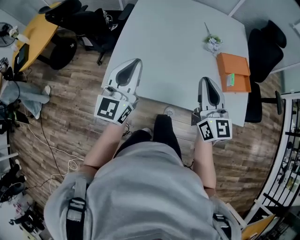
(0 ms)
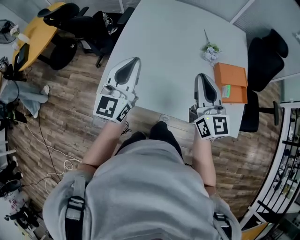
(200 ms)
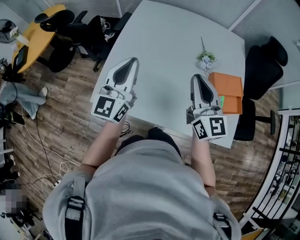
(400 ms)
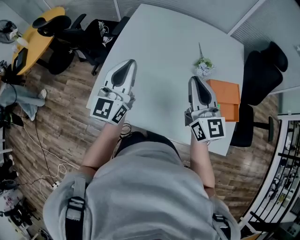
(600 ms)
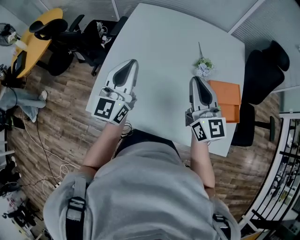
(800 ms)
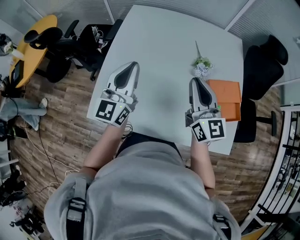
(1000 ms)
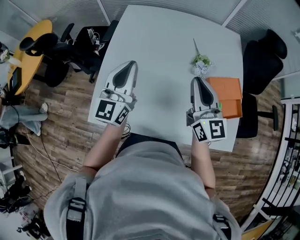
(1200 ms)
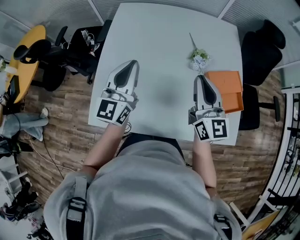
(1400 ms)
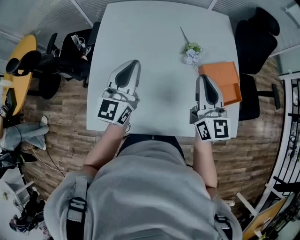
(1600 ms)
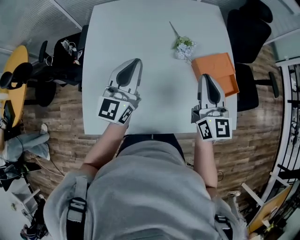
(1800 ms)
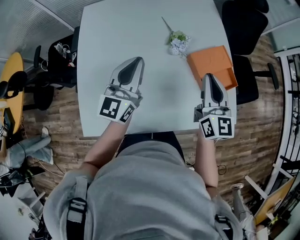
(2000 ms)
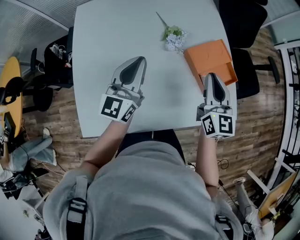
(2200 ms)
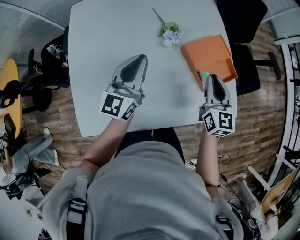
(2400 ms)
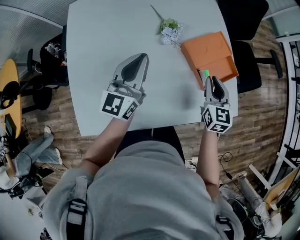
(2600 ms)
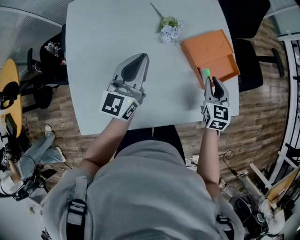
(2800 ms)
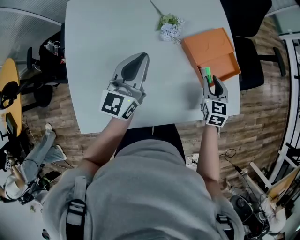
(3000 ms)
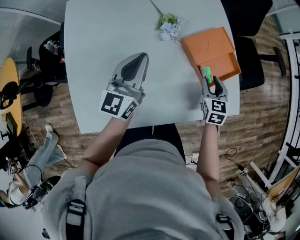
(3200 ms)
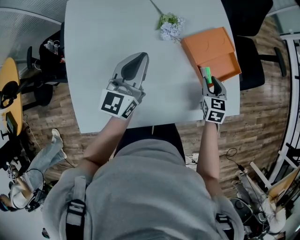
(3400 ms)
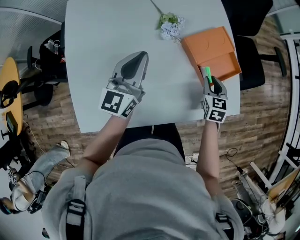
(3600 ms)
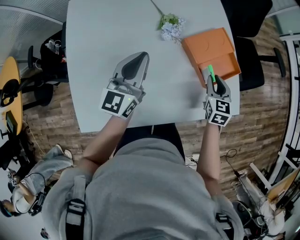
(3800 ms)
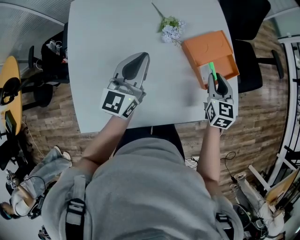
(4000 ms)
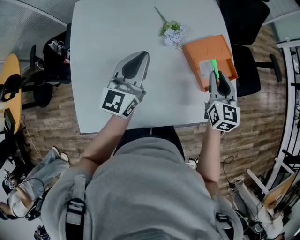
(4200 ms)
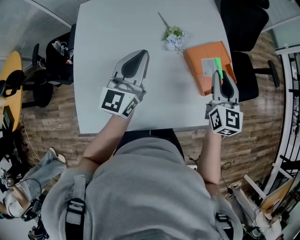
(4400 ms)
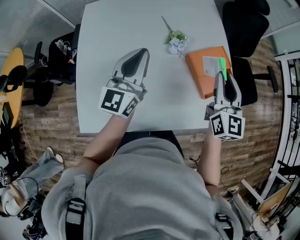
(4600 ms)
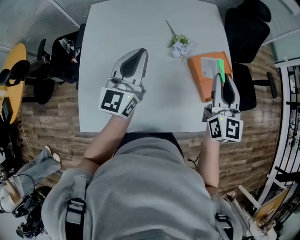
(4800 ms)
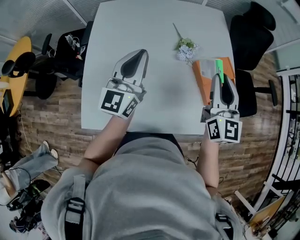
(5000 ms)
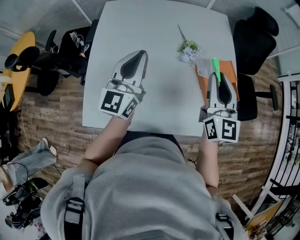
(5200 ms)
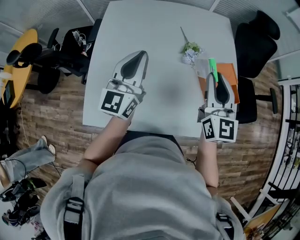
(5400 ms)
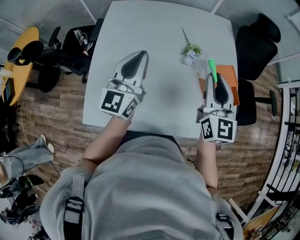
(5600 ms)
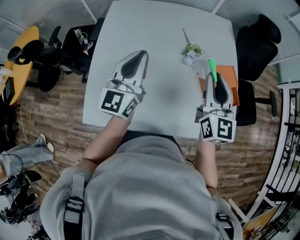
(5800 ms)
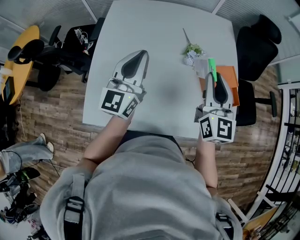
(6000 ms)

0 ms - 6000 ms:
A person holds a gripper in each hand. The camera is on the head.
0 ms - 1600 ms: Both grippers travel together forward and to the right, roughly 25 cm.
1600 ms - 3000 ms: The right gripper is displaced downward and to the right by some 30 cm, and points its fingers approximately 40 degrees further downward; the left gripper shifts some 20 cm to the right, downward and forward.
3000 ms - 4400 ms: The right gripper is displaced upward by approximately 20 cm, and changes its angle by some 20 degrees; the left gripper is displaced upward by approximately 5 cm.
4400 ms - 6000 ms: Both grippers travel together to the left and upward, some 15 cm.

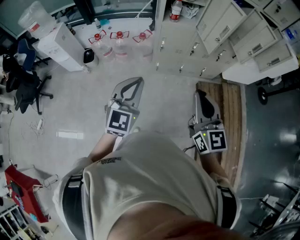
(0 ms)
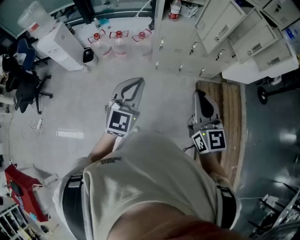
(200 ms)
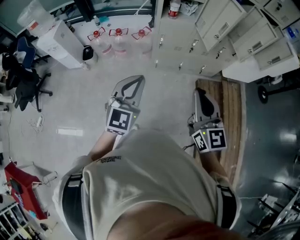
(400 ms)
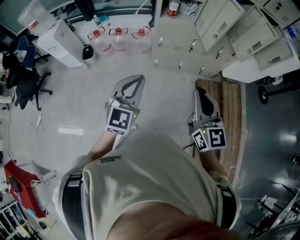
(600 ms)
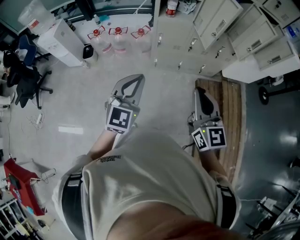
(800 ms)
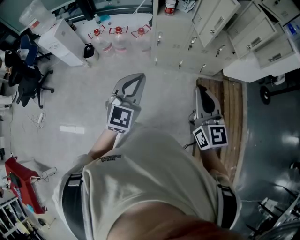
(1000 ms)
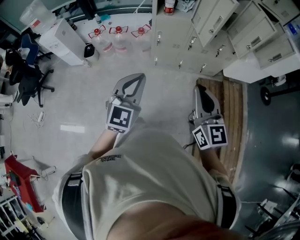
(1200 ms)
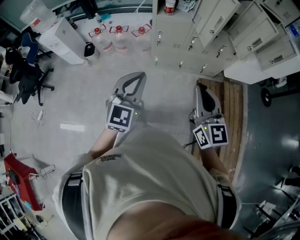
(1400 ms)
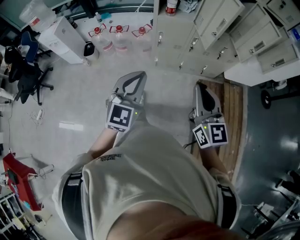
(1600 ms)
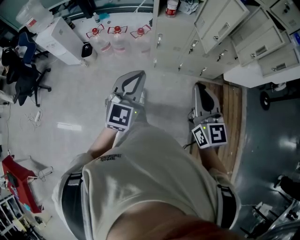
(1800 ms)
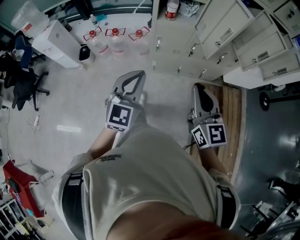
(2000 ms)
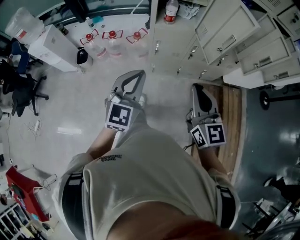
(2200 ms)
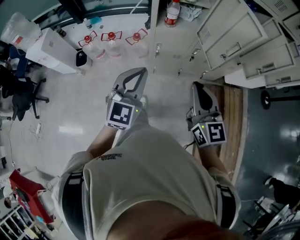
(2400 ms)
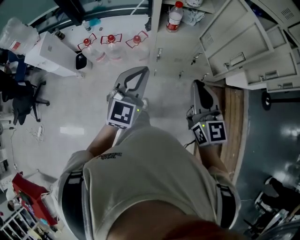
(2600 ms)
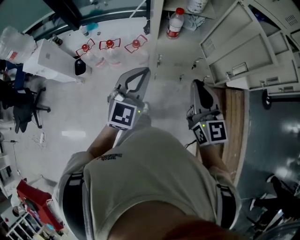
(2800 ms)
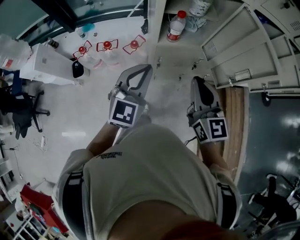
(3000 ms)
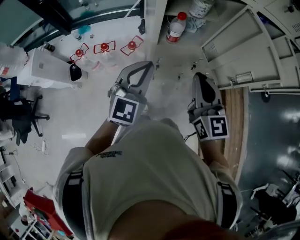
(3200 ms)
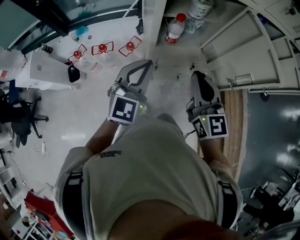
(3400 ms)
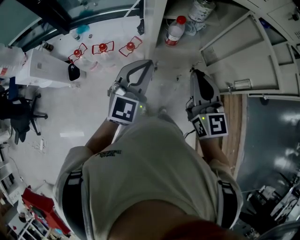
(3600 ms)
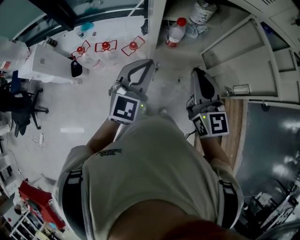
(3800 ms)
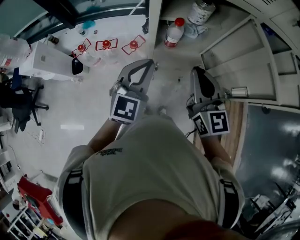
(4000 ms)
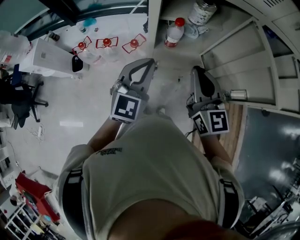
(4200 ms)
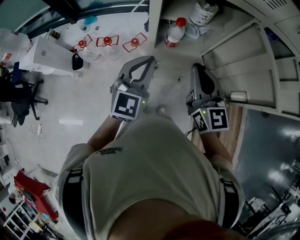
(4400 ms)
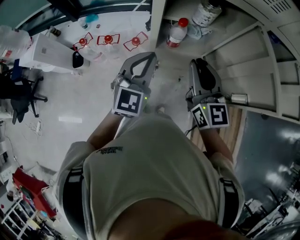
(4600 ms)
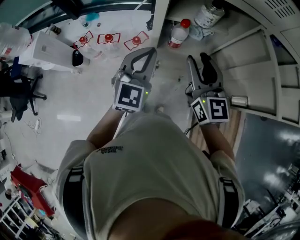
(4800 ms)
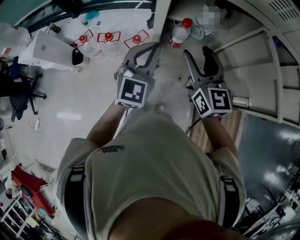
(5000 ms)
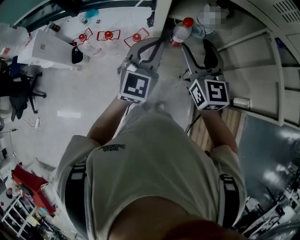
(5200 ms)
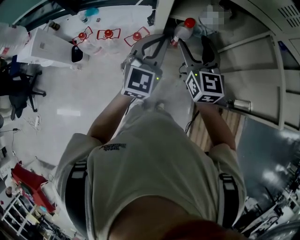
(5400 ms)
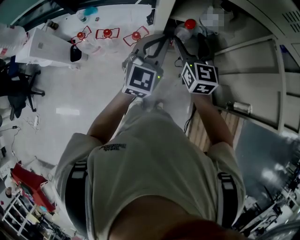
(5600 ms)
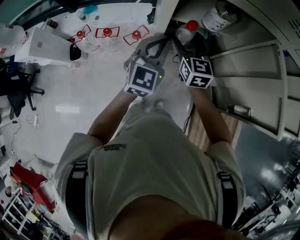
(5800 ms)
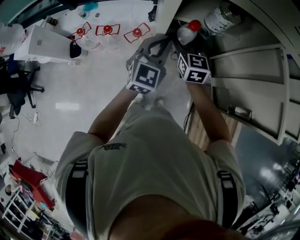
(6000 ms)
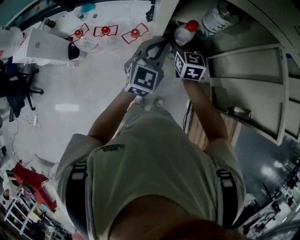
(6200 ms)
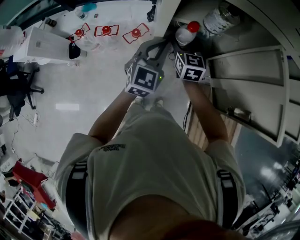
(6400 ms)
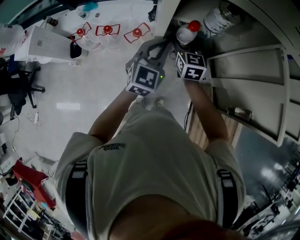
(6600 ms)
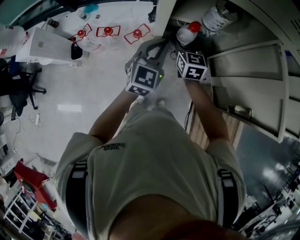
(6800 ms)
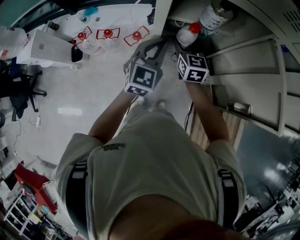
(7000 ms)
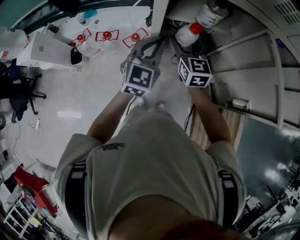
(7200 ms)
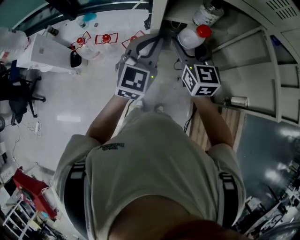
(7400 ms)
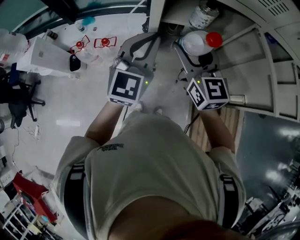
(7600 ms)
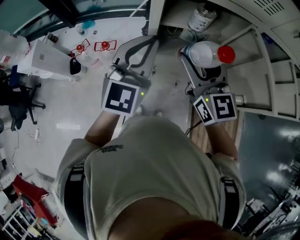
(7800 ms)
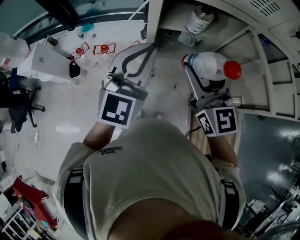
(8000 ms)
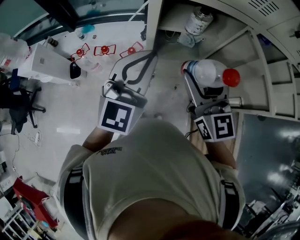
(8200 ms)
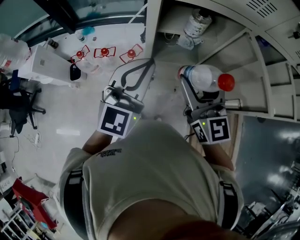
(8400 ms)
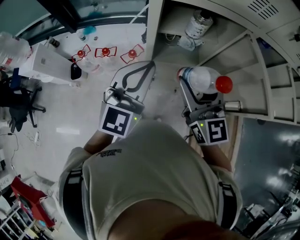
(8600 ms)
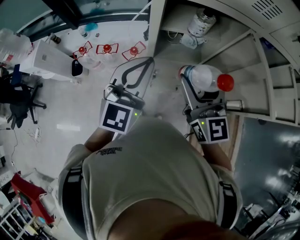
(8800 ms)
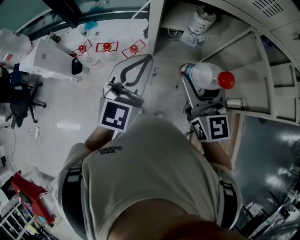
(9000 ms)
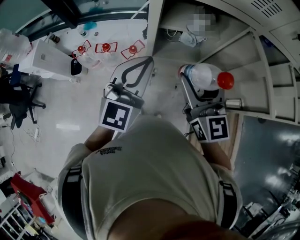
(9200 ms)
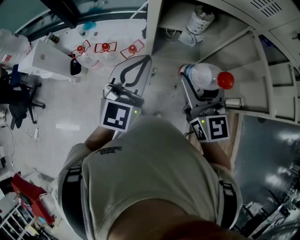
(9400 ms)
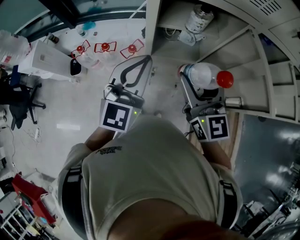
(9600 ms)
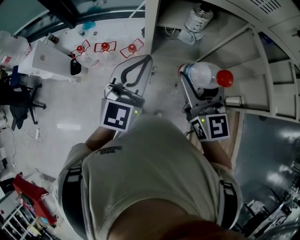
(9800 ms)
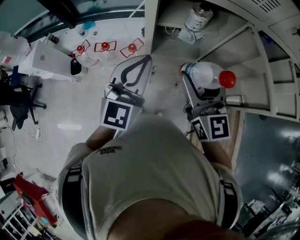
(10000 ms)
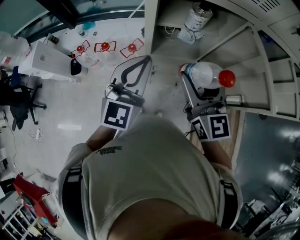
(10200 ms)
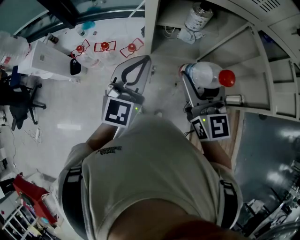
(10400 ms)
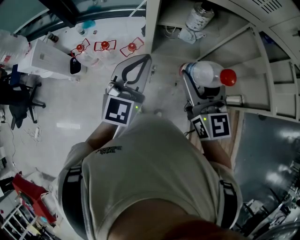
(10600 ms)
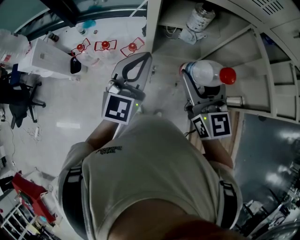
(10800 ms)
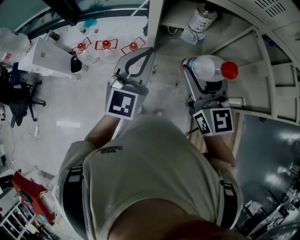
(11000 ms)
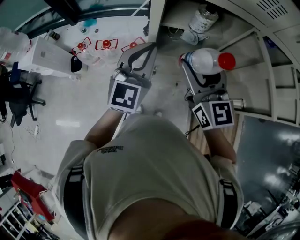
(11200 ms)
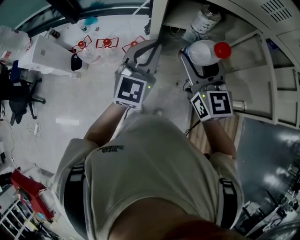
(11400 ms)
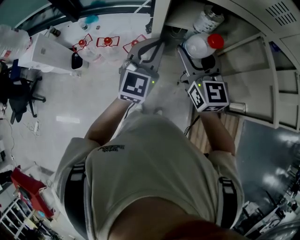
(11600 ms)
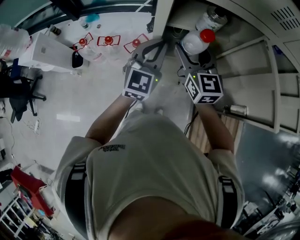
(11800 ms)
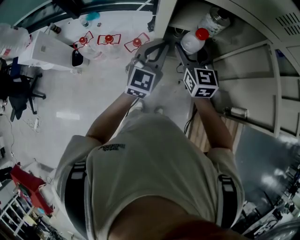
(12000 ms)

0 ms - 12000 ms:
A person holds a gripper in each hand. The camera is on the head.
0 ms - 1600 ms: Both grippers travel together to the right, some 10 cm.
1600 ms - 3000 ms: The grippers both shift forward by roughly 30 cm.
3000 ms - 4400 ms: Both grippers travel together forward, about 10 cm.
4400 ms - 6000 ms: The left gripper moves forward and downward, roughly 15 cm; the right gripper moves forward and downward, approximately 20 cm, and opens up.
6000 ms - 7600 ms: The grippers both shift upward and backward by some 15 cm.
7600 ms - 9000 ms: Both grippers move backward, approximately 5 cm.
9000 ms - 10400 ms: The grippers stay close to where they were, moving slightly.
10400 ms - 12000 ms: Both grippers move forward and downward, roughly 15 cm.

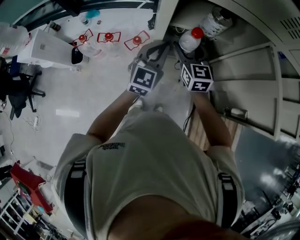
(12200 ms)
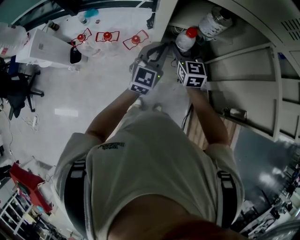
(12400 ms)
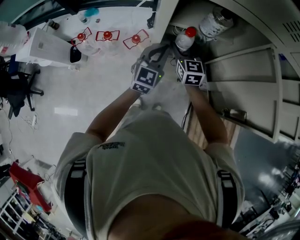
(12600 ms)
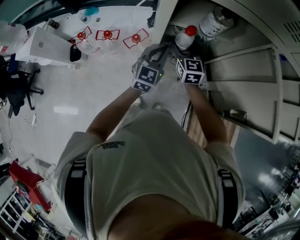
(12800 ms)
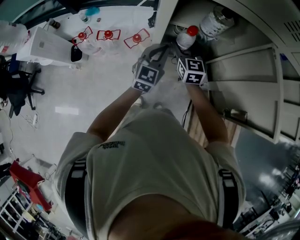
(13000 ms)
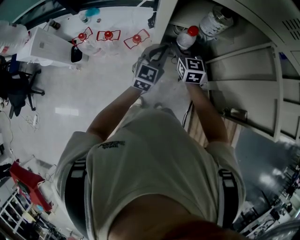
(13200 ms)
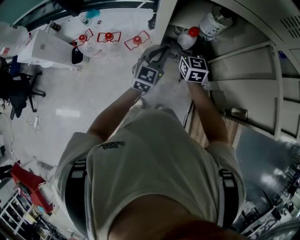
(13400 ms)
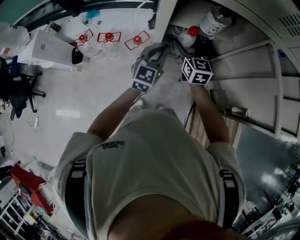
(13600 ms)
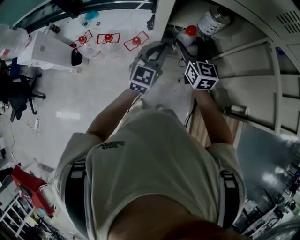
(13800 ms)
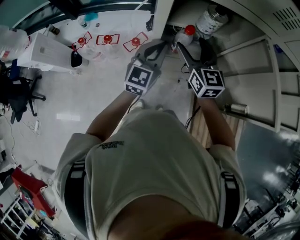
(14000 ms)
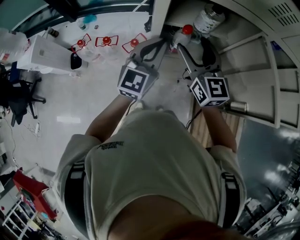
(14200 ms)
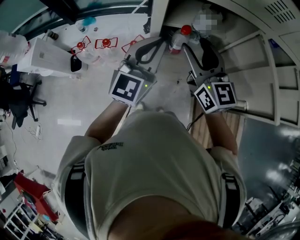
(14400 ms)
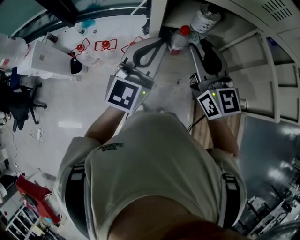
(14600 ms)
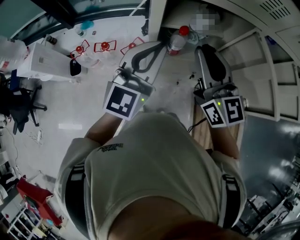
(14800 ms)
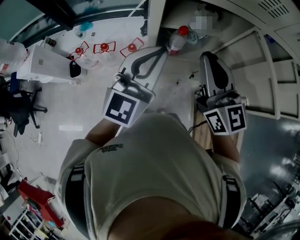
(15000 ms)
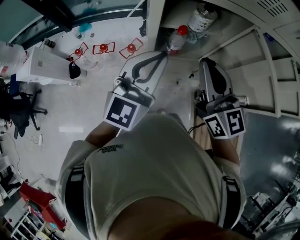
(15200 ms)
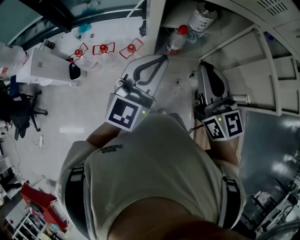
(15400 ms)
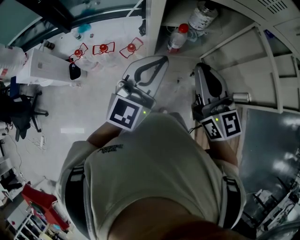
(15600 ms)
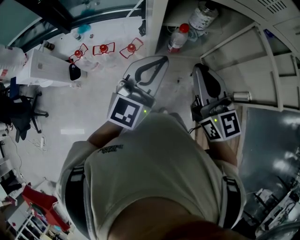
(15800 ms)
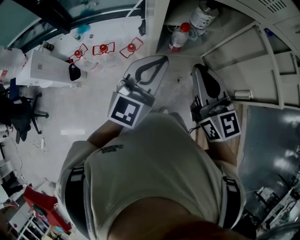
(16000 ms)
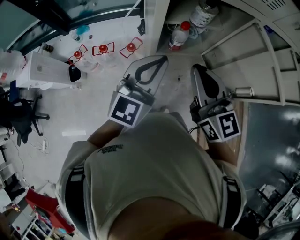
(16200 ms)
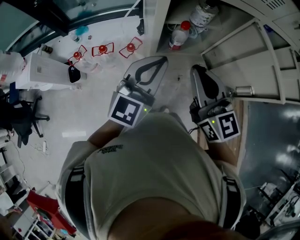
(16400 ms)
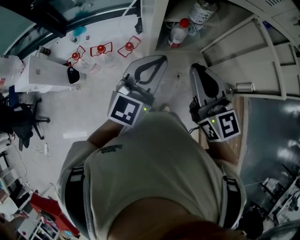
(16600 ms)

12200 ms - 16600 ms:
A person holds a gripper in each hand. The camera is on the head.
13600 ms - 15200 ms: The grippers both shift upward and backward by some 25 cm. The left gripper rotates some 20 degrees; the right gripper closes its fingers.
15200 ms - 16600 ms: The right gripper shifts by approximately 5 cm.

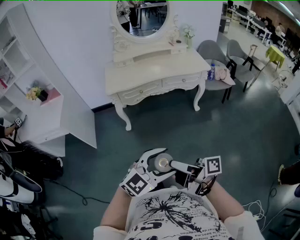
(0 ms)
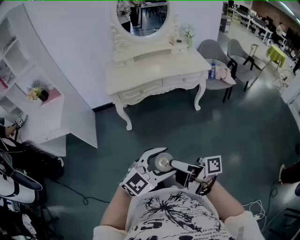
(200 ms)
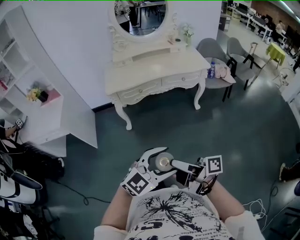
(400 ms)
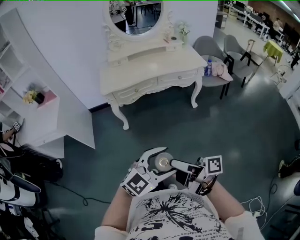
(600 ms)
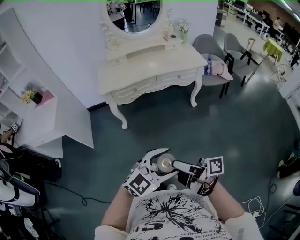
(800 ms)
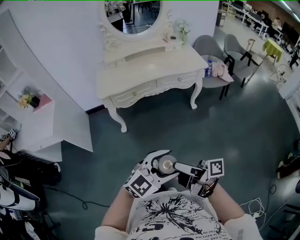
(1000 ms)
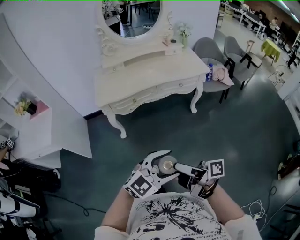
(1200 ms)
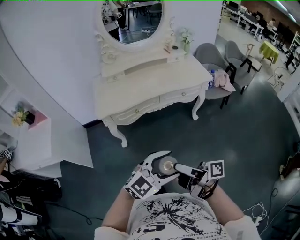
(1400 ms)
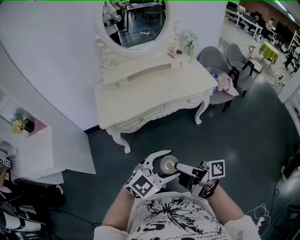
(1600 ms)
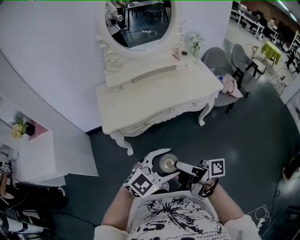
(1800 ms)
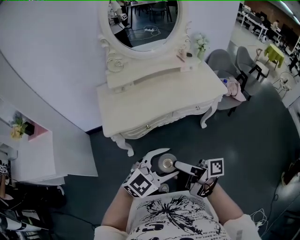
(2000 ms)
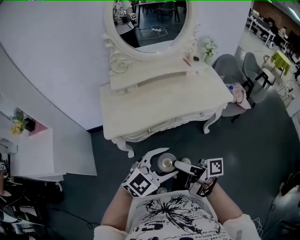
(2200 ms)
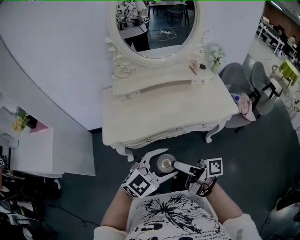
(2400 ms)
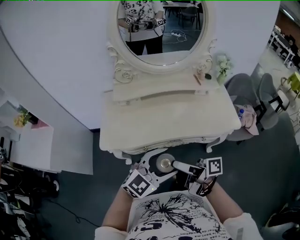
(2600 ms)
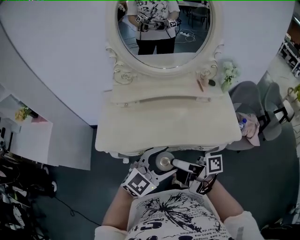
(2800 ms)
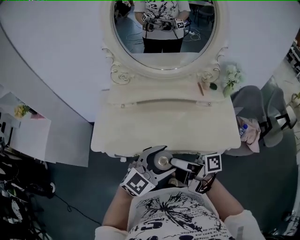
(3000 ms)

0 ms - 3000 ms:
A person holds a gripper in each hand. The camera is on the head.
0 ms - 1600 ms: Both grippers travel together forward, approximately 25 cm.
1600 ms - 3000 ms: The left gripper moves roughly 40 cm, and changes its angle by about 30 degrees. Meanwhile the right gripper changes place by some 40 cm, and rotates approximately 30 degrees.
